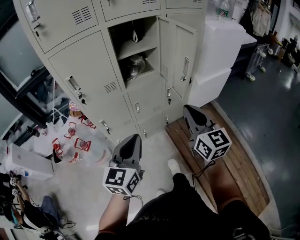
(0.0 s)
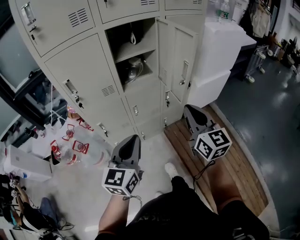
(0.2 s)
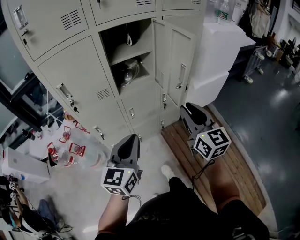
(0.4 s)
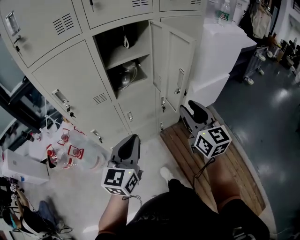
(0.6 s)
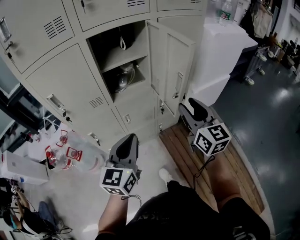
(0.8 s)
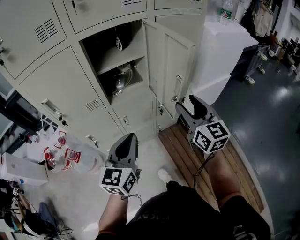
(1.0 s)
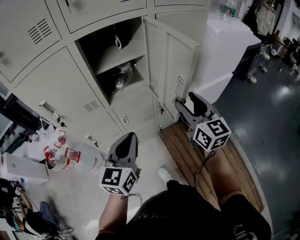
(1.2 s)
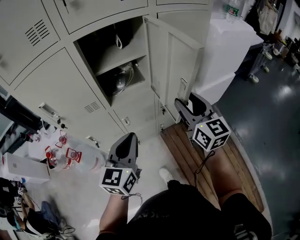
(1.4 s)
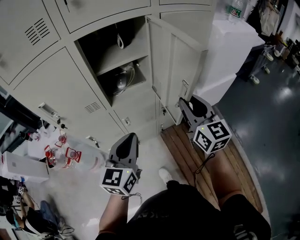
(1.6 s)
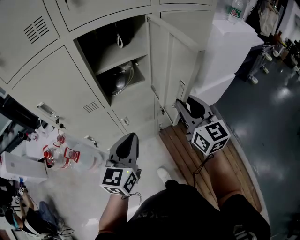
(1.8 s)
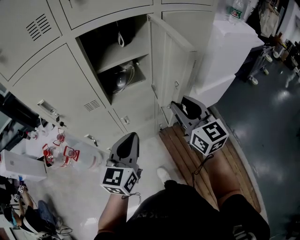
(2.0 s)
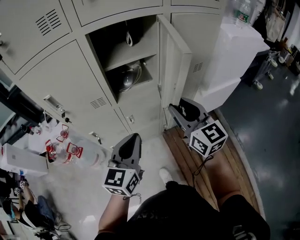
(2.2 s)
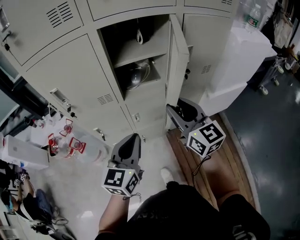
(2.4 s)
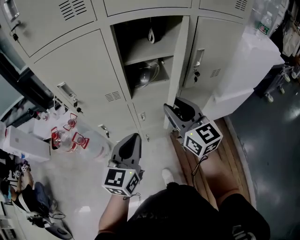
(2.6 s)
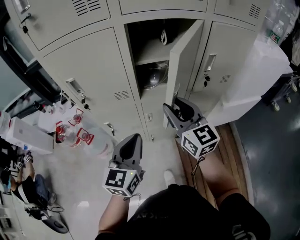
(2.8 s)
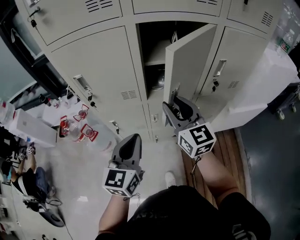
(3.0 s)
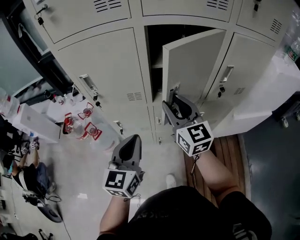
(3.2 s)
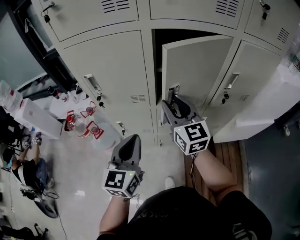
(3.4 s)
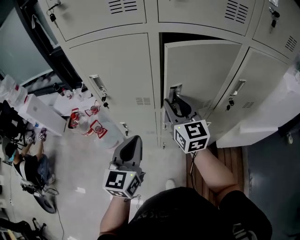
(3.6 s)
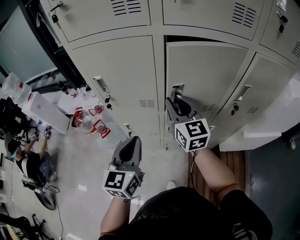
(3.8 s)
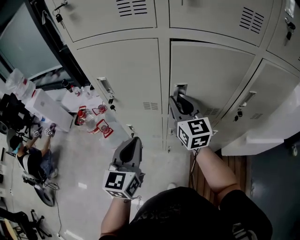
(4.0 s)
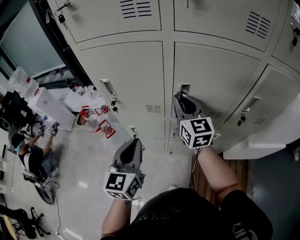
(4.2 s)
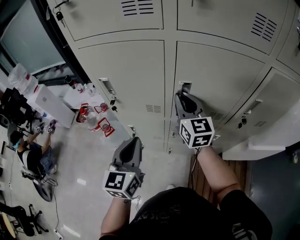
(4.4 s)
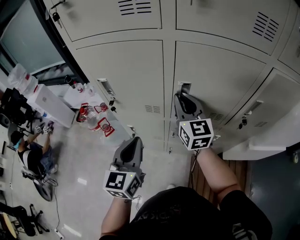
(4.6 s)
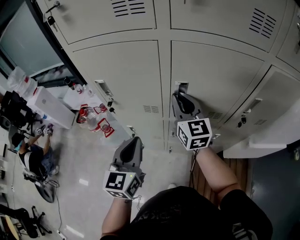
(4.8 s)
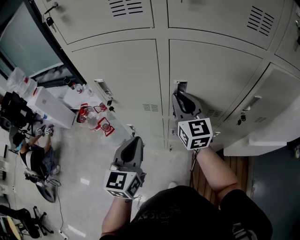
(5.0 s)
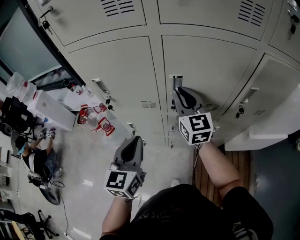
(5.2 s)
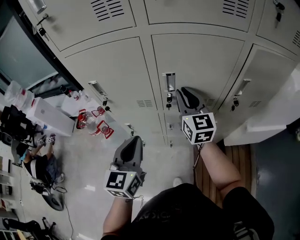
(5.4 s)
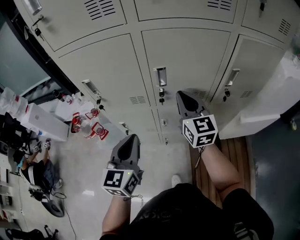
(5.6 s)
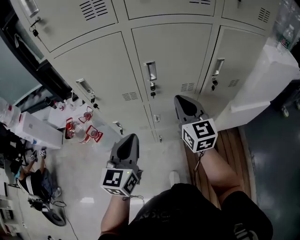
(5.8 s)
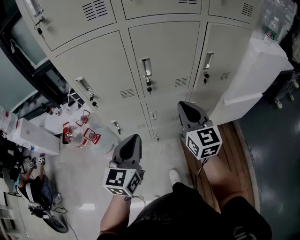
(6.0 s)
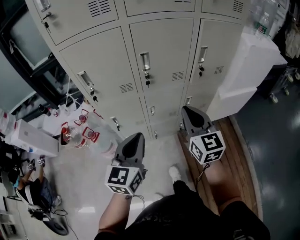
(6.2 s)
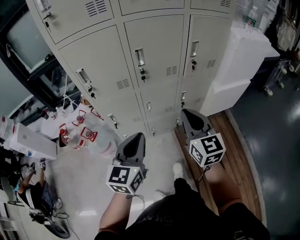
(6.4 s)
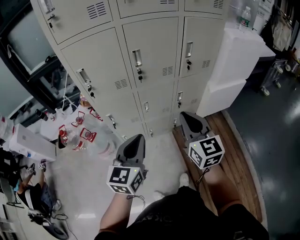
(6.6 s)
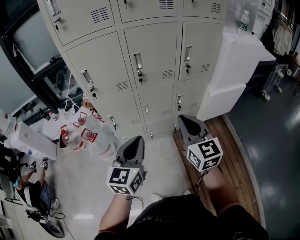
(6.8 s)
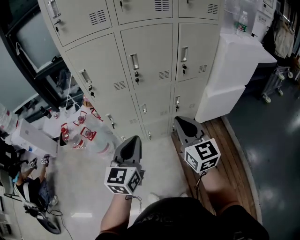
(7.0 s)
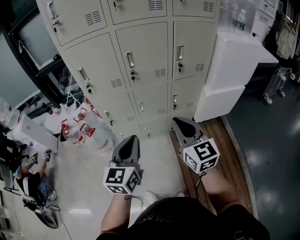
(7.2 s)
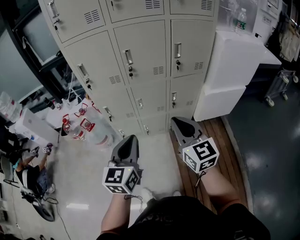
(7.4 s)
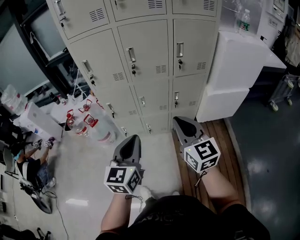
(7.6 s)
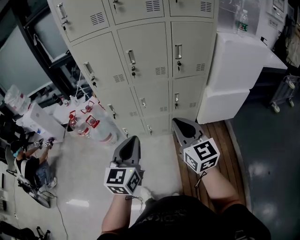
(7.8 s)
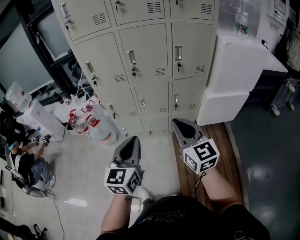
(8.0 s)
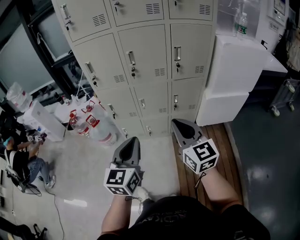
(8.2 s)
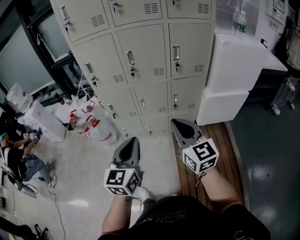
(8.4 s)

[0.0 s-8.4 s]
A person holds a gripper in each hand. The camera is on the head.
0.0 to 1.4 s: Both grippers move forward, roughly 20 cm. The right gripper opens its fingers.
1.4 to 2.8 s: The right gripper goes about 15 cm to the left. The left gripper shifts some 10 cm to the left.
2.8 to 4.2 s: The left gripper is displaced to the left and forward by about 10 cm, and rotates roughly 20 degrees. Meanwhile the right gripper shifts about 15 cm forward and to the left, and closes its fingers.
4.2 to 5.6 s: The right gripper shifts roughly 10 cm to the right and backward.
5.6 to 7.0 s: The right gripper moves backward, roughly 35 cm; the left gripper moves backward, some 20 cm.
7.0 to 8.4 s: Both grippers move backward and to the right, some 15 cm.

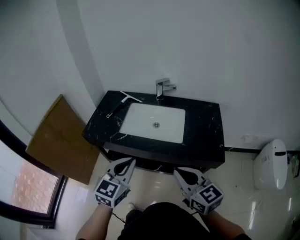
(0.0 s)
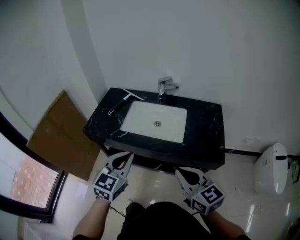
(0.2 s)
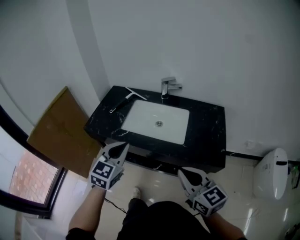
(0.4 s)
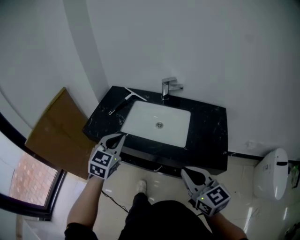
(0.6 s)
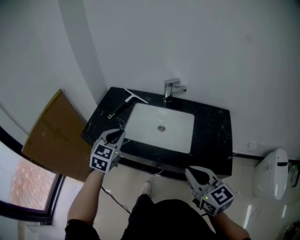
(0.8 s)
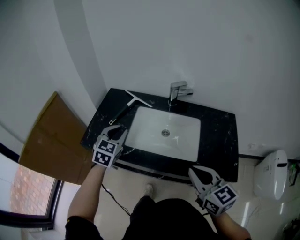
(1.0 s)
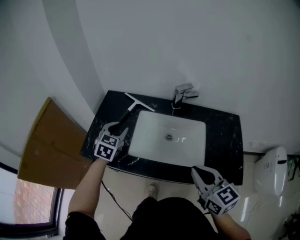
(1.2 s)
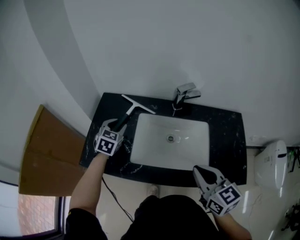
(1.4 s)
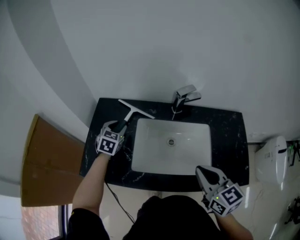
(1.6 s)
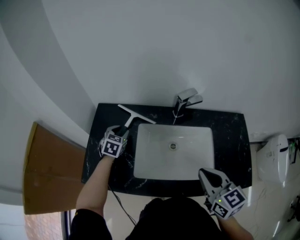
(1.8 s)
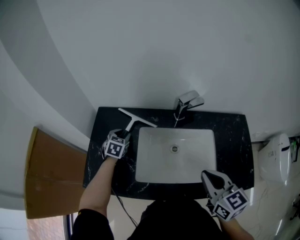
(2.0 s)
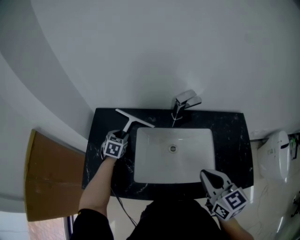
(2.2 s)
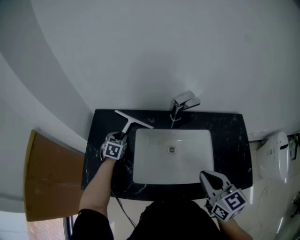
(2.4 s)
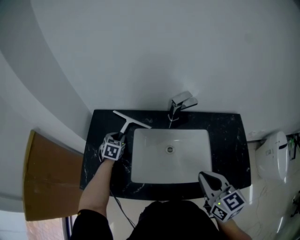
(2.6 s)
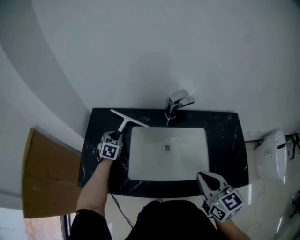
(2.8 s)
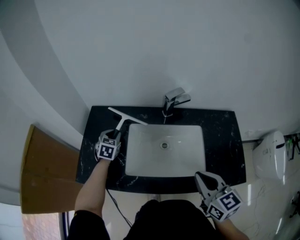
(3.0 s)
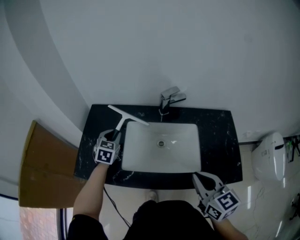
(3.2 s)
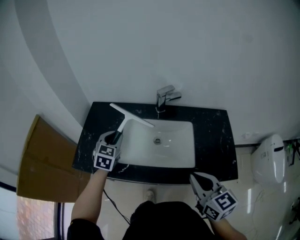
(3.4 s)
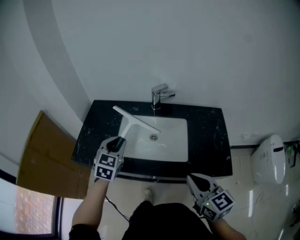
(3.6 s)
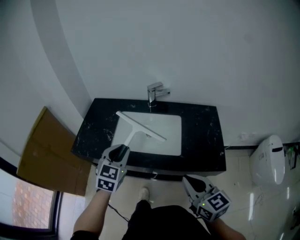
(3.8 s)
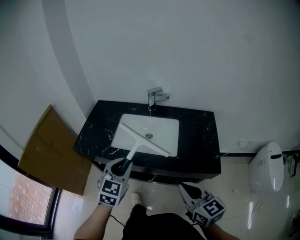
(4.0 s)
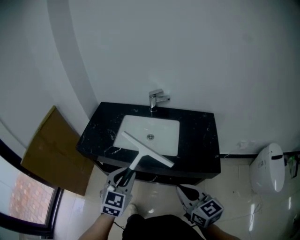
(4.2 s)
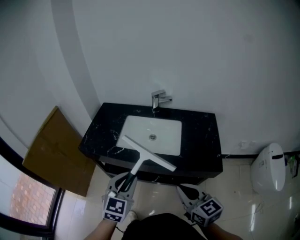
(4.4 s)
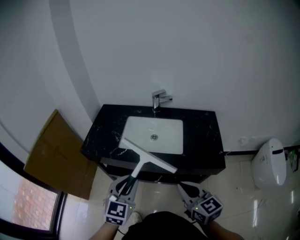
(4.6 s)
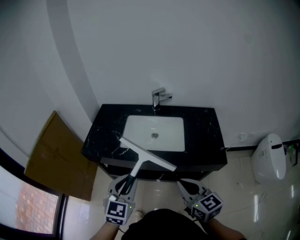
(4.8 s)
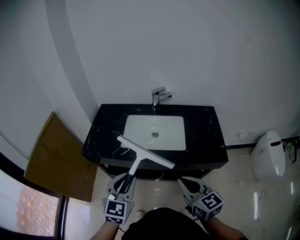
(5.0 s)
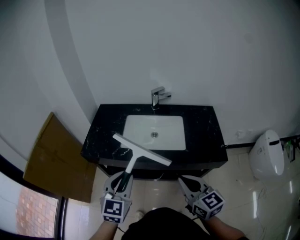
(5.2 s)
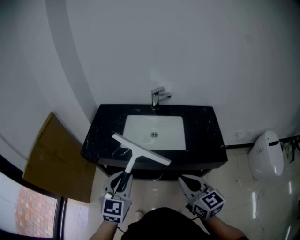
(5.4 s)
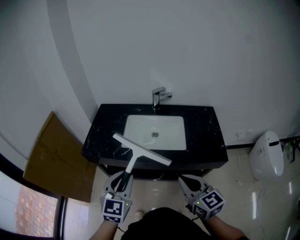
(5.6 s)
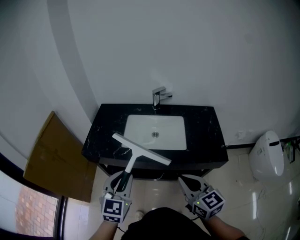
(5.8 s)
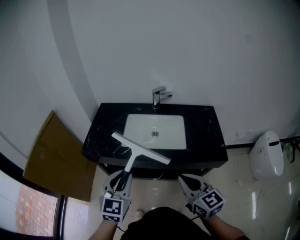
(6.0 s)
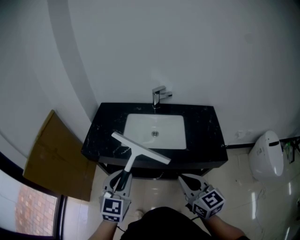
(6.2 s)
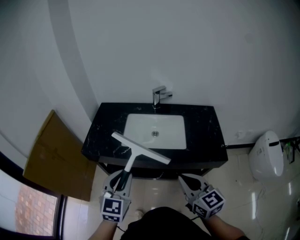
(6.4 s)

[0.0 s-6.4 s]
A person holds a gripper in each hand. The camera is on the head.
0.0 to 1.6 s: The right gripper heads forward, covering approximately 25 cm. Meanwhile the left gripper moves forward, approximately 50 cm, swivels some 20 degrees, and opens.
1.6 to 3.2 s: The left gripper travels downward and back again, approximately 10 cm each way, while the right gripper is displaced backward by about 5 cm.
3.2 to 4.8 s: The right gripper moves backward, some 20 cm, while the left gripper goes about 40 cm backward.
4.8 to 6.4 s: There are only small adjustments of the grippers.

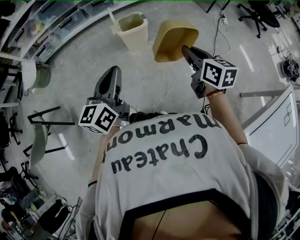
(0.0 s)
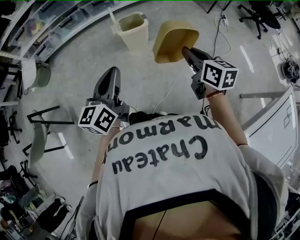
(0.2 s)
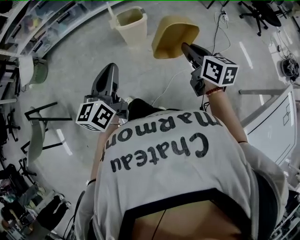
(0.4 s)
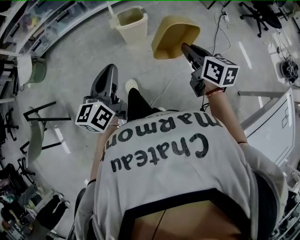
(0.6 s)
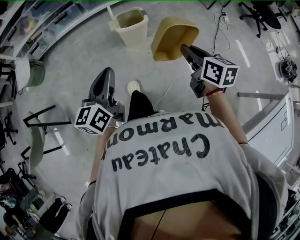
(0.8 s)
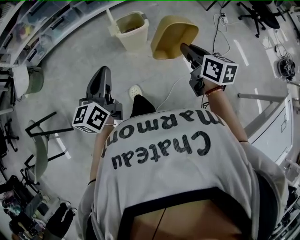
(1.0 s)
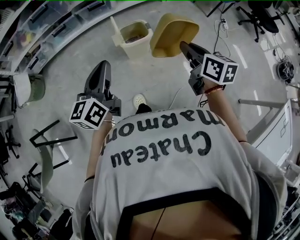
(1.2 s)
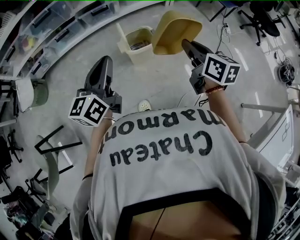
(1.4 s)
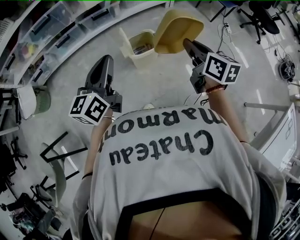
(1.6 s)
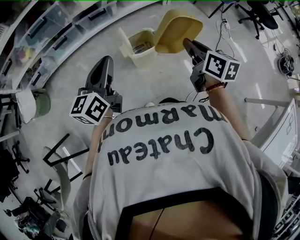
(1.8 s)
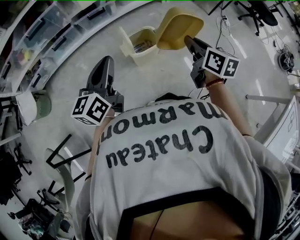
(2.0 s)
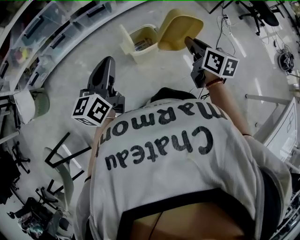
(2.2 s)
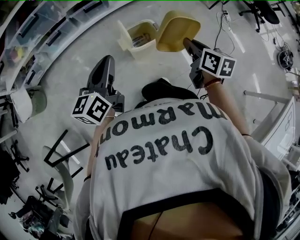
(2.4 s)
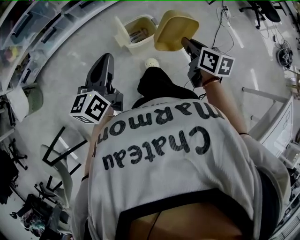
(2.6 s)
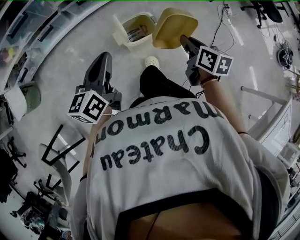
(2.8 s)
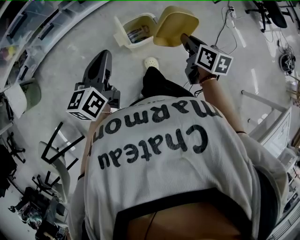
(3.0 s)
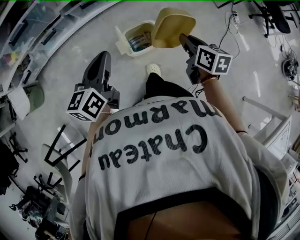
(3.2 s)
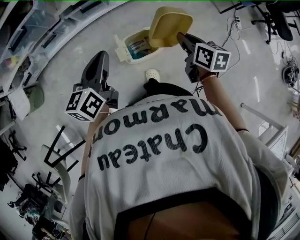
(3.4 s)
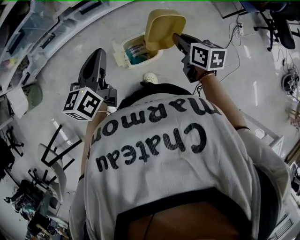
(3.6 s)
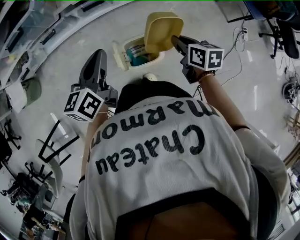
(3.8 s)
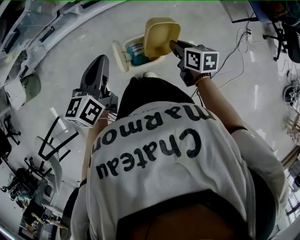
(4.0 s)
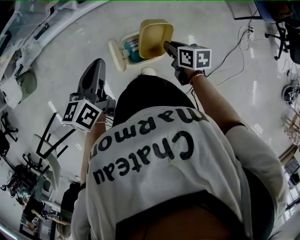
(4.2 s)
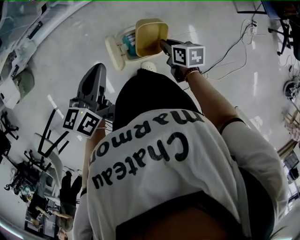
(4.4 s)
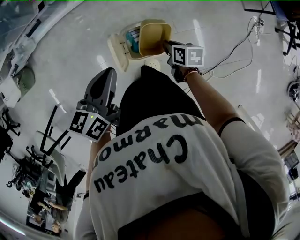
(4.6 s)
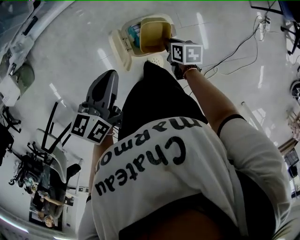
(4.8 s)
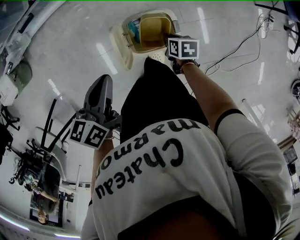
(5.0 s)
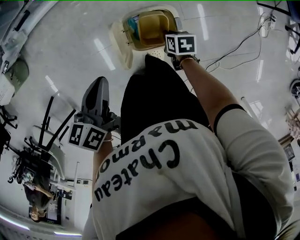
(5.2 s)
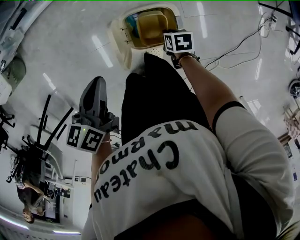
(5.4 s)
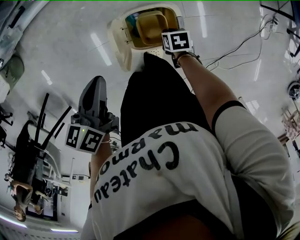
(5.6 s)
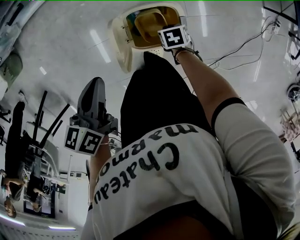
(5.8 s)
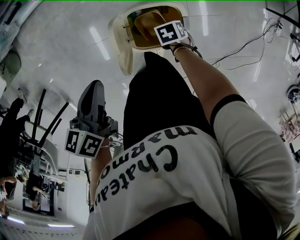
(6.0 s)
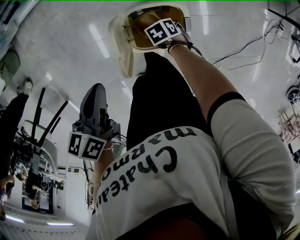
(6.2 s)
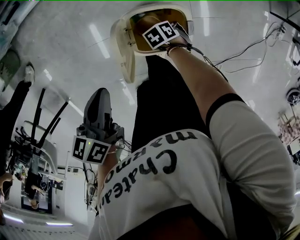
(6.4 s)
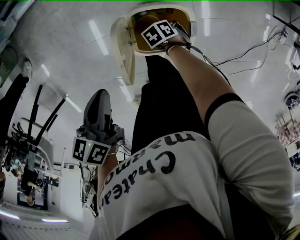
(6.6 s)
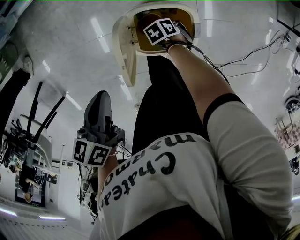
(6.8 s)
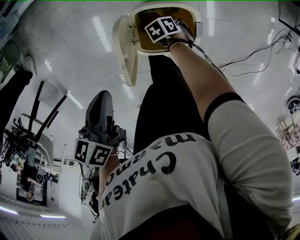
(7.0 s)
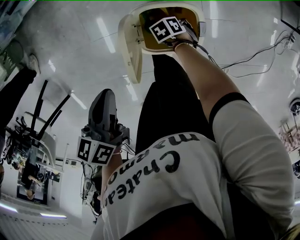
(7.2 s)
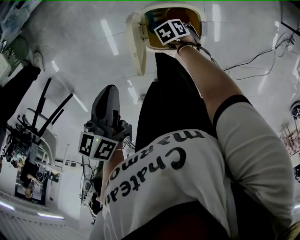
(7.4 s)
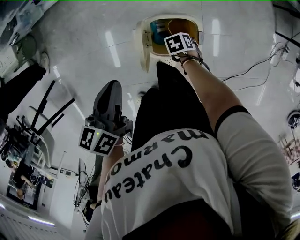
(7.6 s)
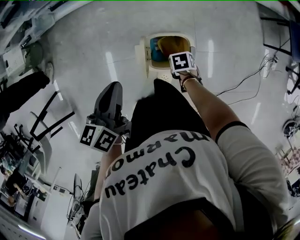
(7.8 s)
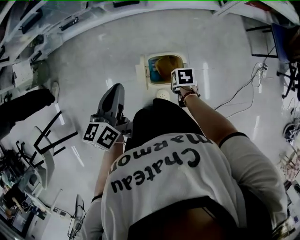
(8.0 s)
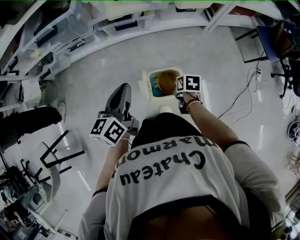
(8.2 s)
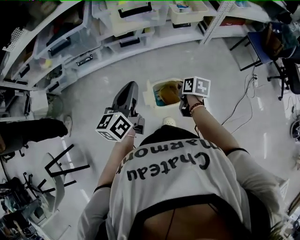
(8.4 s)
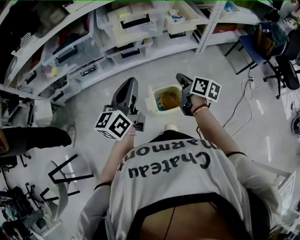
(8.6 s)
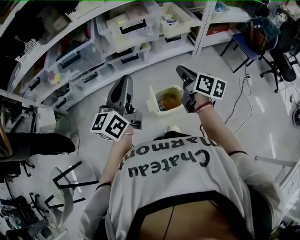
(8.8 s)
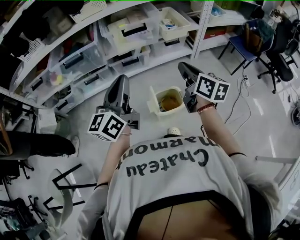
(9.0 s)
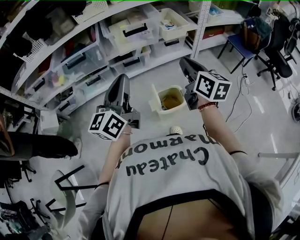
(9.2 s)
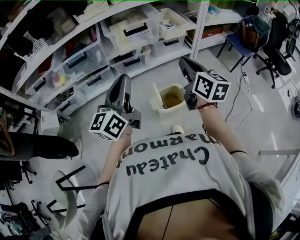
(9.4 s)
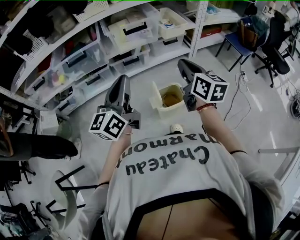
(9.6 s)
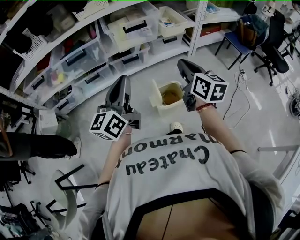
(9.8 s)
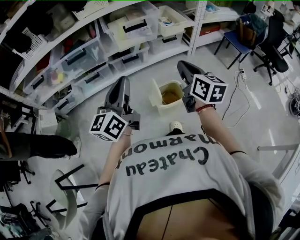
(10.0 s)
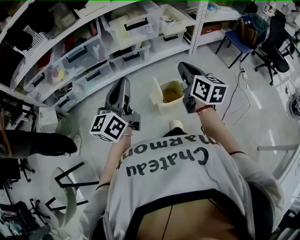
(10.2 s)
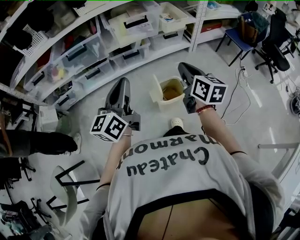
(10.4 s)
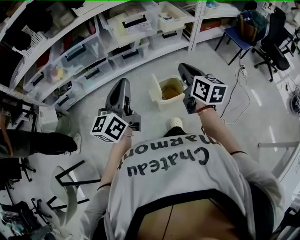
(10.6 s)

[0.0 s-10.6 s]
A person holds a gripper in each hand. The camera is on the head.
0.0 to 1.6 s: Both grippers move forward and to the left, roughly 30 cm.
1.6 to 3.0 s: The left gripper shifts some 15 cm forward and downward, while the right gripper moves downward and forward, some 15 cm.
3.0 to 4.6 s: The left gripper travels forward, downward and to the right by roughly 20 cm, while the right gripper shifts approximately 30 cm downward and forward, and changes its angle by roughly 30 degrees.
4.6 to 6.0 s: The left gripper travels downward by about 10 cm, and swivels about 20 degrees. The right gripper travels downward by roughly 20 cm, and swivels some 40 degrees.
6.0 to 7.6 s: The right gripper reaches roughly 5 cm downward, then returns, and opens.
7.6 to 9.0 s: The right gripper is displaced upward by about 60 cm, tips its fingers upward by some 80 degrees, and closes its fingers. Meanwhile the left gripper travels upward by some 35 cm, and points its fingers roughly 50 degrees further upward.
9.0 to 10.6 s: The grippers both shift backward by approximately 10 cm.
